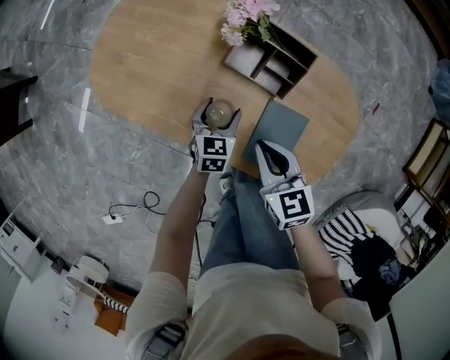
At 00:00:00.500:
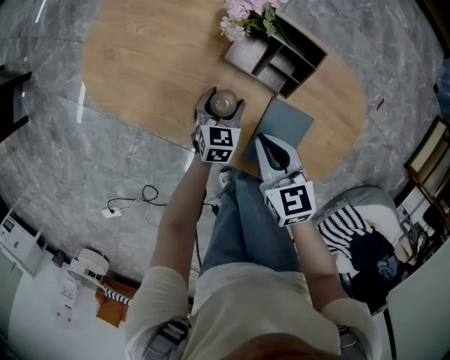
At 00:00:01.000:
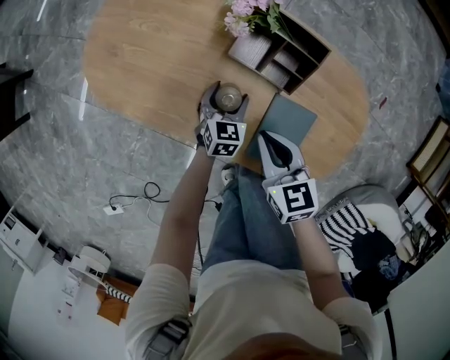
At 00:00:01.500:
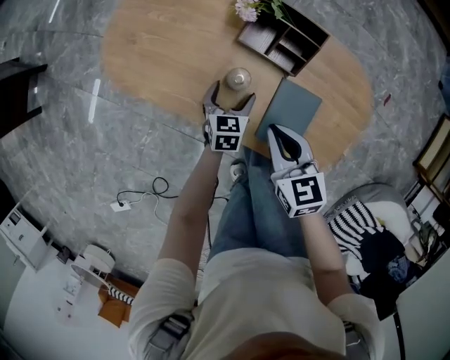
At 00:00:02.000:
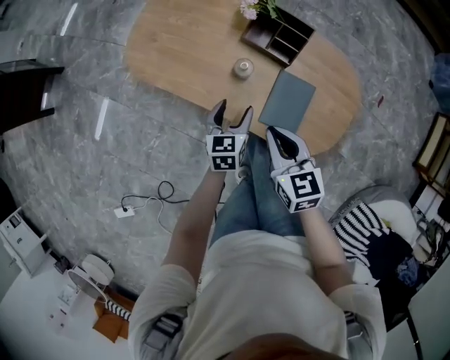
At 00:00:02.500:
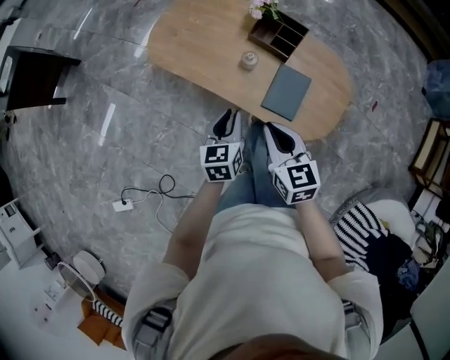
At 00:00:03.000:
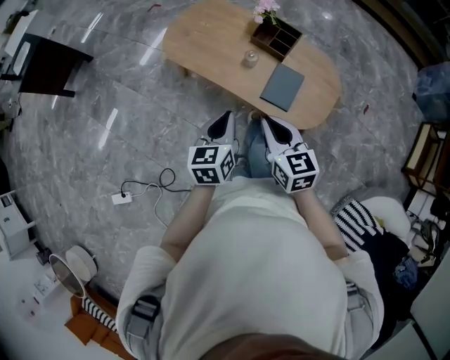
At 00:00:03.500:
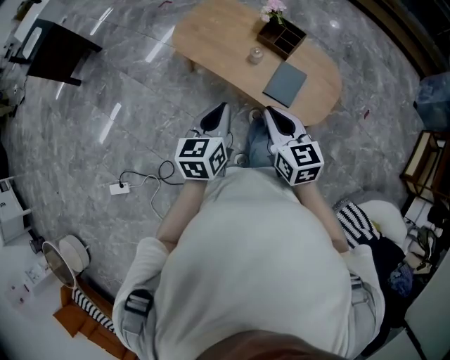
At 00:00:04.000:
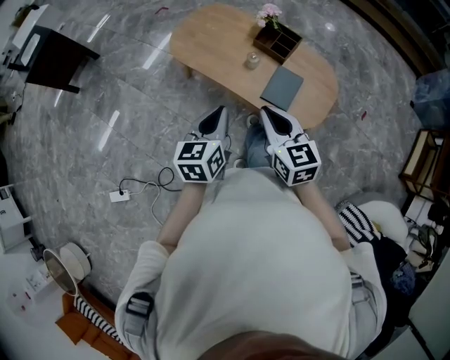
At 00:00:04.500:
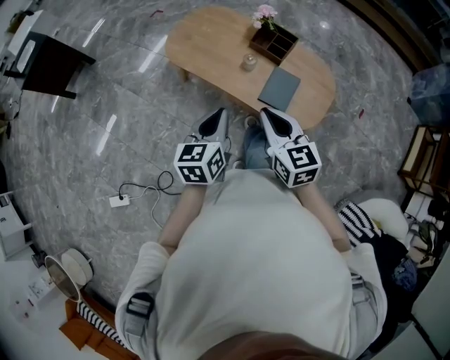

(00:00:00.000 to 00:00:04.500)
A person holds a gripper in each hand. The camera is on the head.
00:00:00.000 - 00:00:02.000: The two grippers go about 15 cm backward and upward.
00:00:02.000 - 00:00:04.500: Both grippers move upward and backward, approximately 30 cm. The left gripper closes its fingers.

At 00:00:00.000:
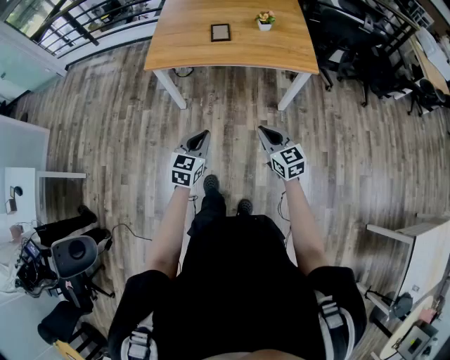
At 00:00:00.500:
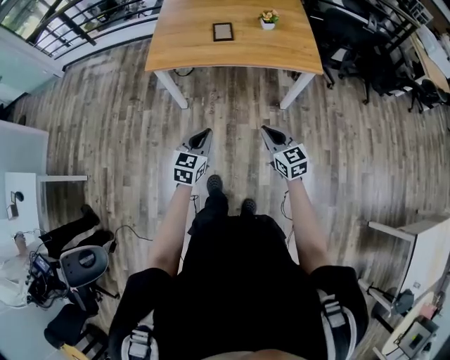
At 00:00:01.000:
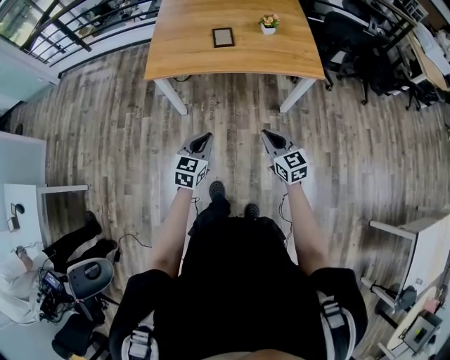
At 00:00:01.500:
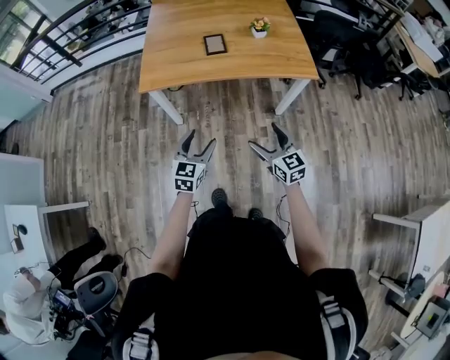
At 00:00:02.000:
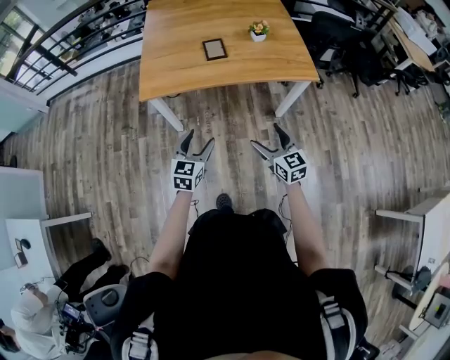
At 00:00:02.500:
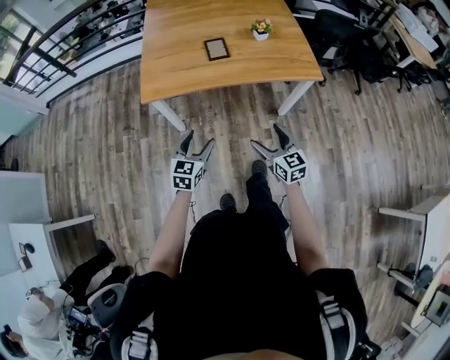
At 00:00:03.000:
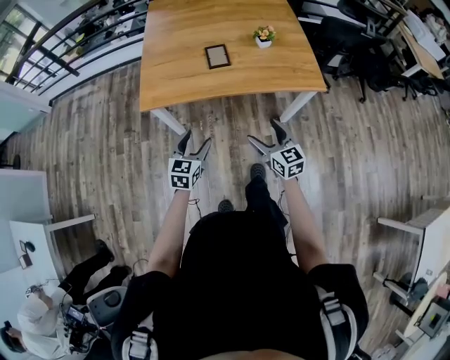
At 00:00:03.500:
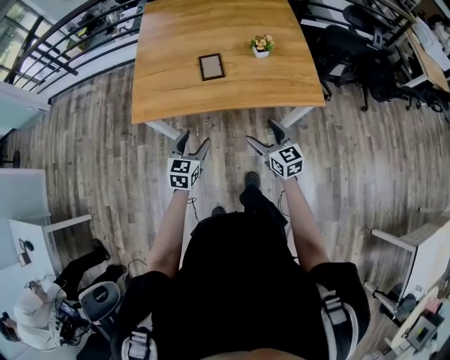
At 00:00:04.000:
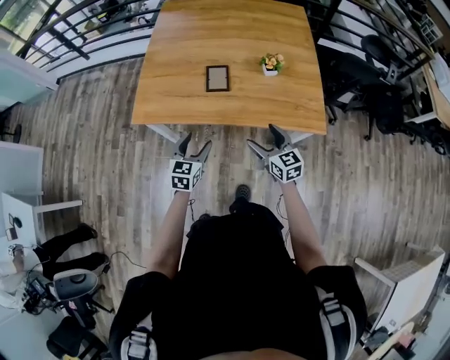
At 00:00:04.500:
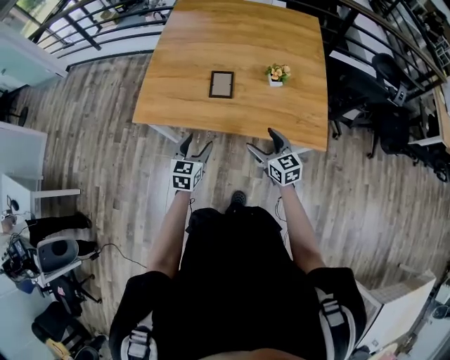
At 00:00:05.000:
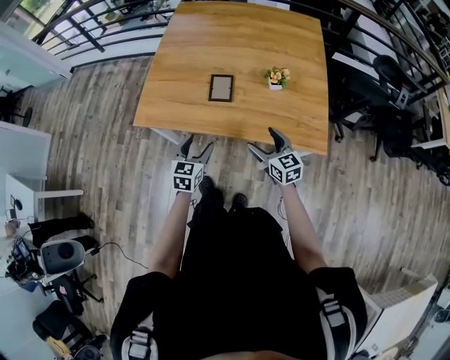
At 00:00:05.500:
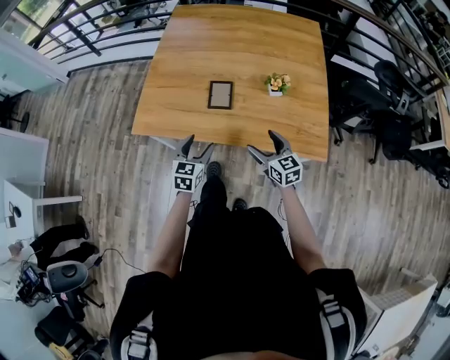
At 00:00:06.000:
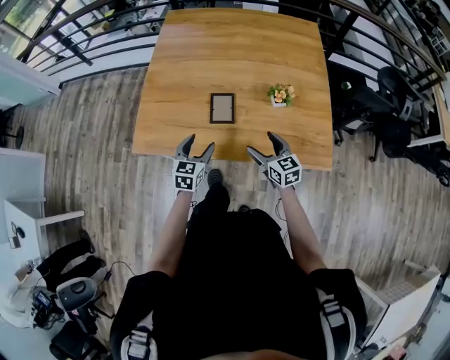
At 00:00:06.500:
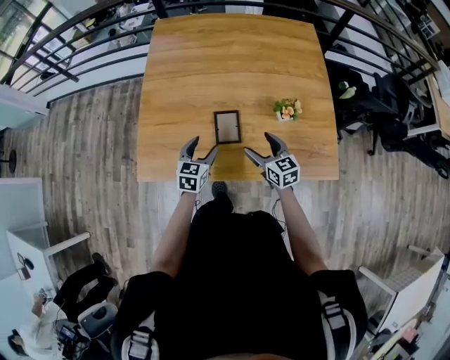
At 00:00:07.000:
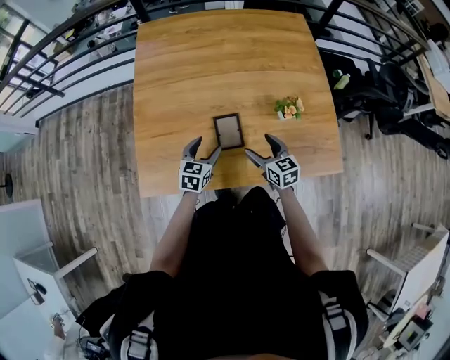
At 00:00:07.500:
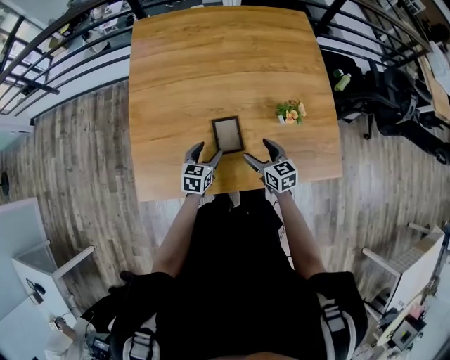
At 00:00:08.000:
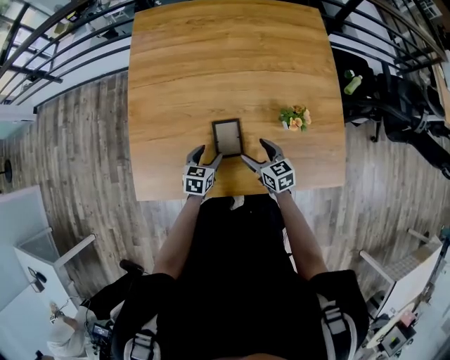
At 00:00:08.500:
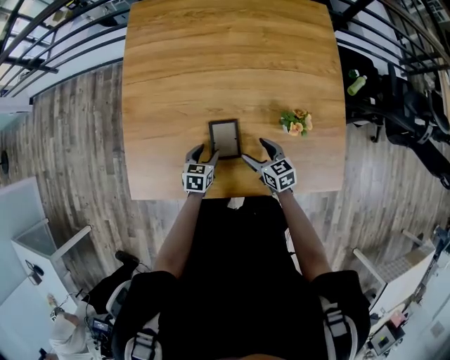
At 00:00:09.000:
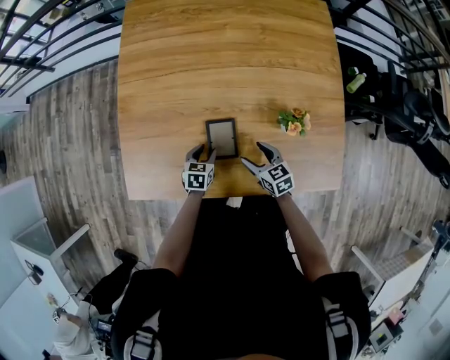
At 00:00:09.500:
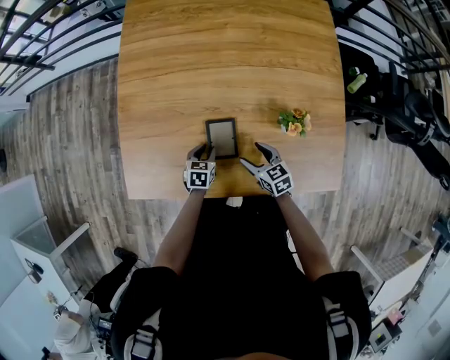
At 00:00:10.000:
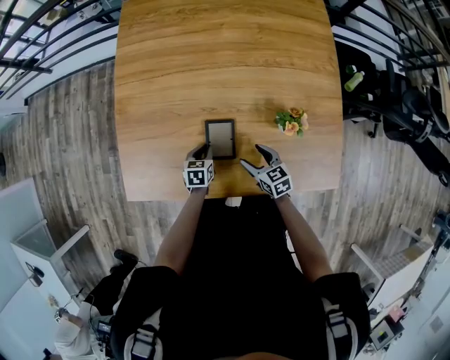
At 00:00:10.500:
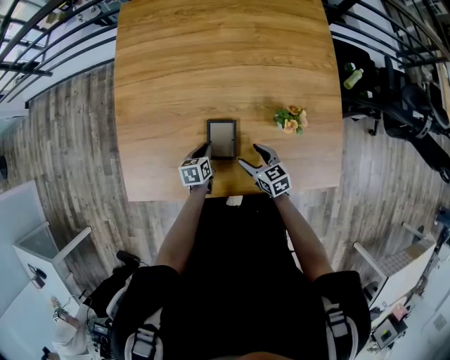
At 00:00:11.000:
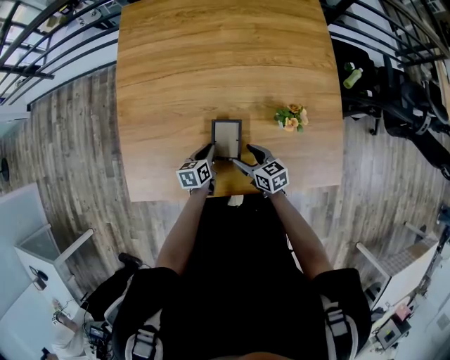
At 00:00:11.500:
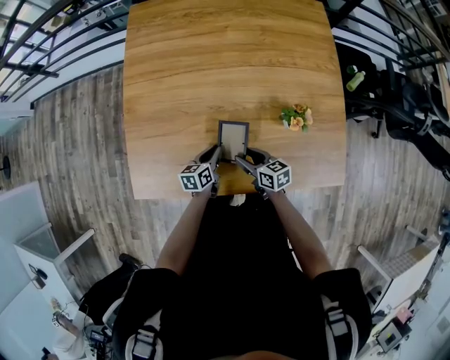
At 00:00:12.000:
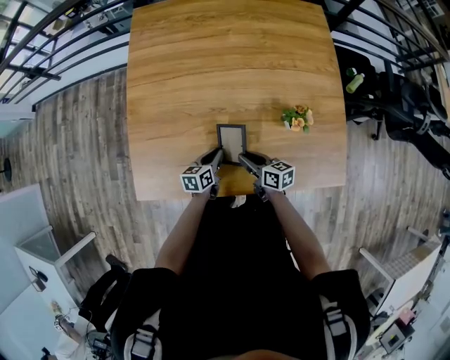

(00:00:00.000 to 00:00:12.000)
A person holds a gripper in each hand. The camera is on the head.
00:00:00.000 - 00:00:02.000: Both grippers move forward and to the left, about 15 cm. The right gripper opens its fingers. The left gripper opens.
00:00:02.000 - 00:00:04.000: The left gripper heads forward and to the right, covering roughly 20 cm, while the right gripper moves forward, roughly 25 cm.
00:00:04.000 - 00:00:06.000: Both grippers travel together forward, approximately 15 cm.
00:00:06.000 - 00:00:08.000: The right gripper travels forward, downward and to the left by roughly 15 cm, while the left gripper heads forward and downward, covering approximately 20 cm, and changes its angle by some 20 degrees.
00:00:08.000 - 00:00:10.000: The left gripper moves downward, roughly 5 cm, and closes.
00:00:10.000 - 00:00:12.000: The left gripper turns by roughly 20 degrees, while the right gripper heads to the left, covering approximately 5 cm, swivels approximately 30 degrees, and closes up.

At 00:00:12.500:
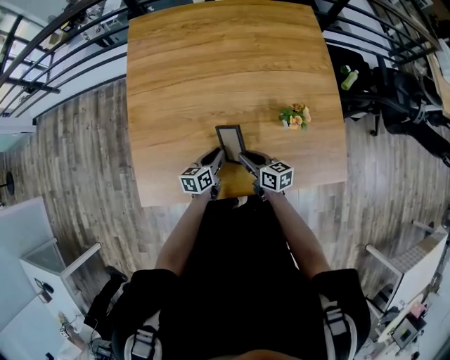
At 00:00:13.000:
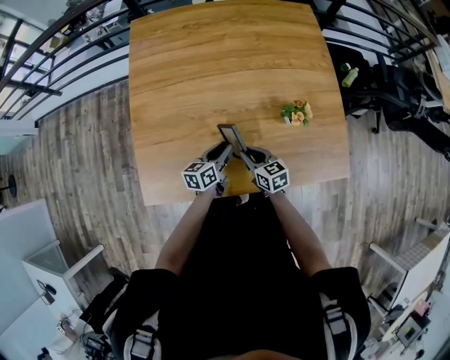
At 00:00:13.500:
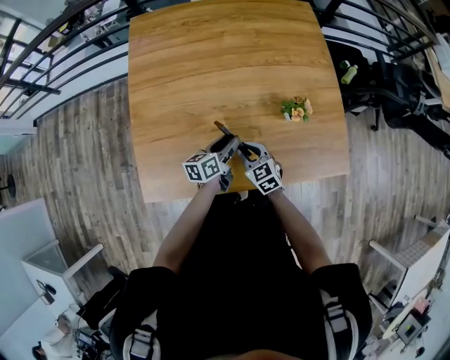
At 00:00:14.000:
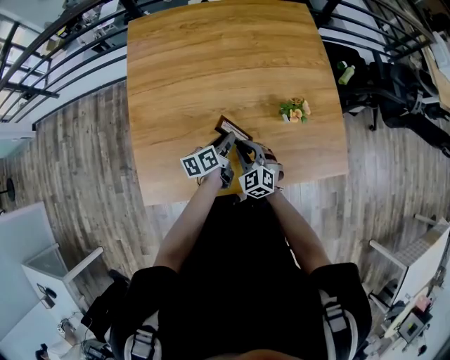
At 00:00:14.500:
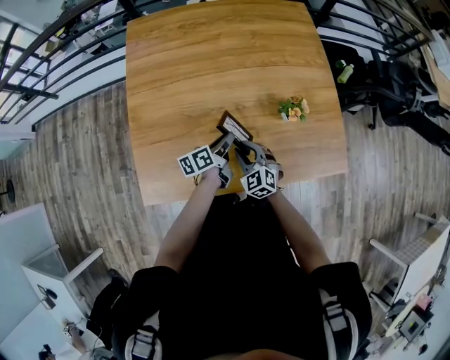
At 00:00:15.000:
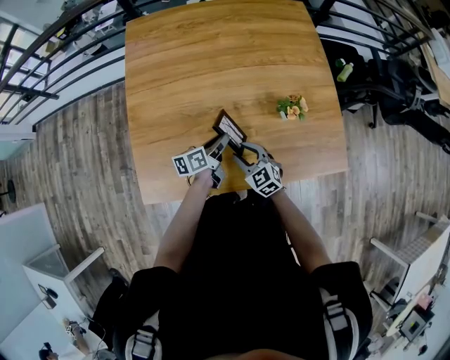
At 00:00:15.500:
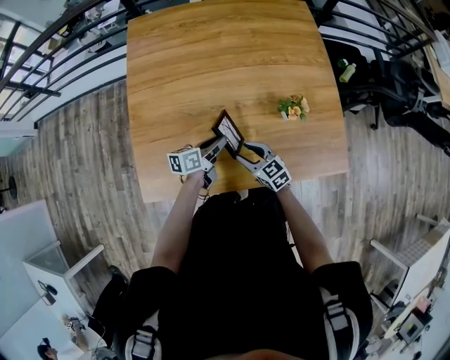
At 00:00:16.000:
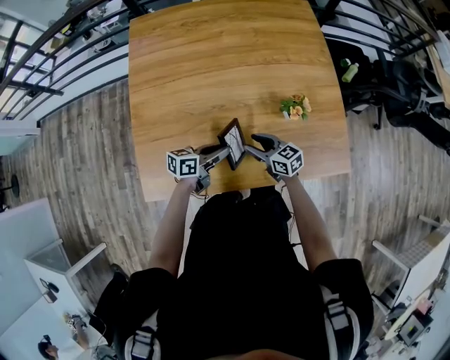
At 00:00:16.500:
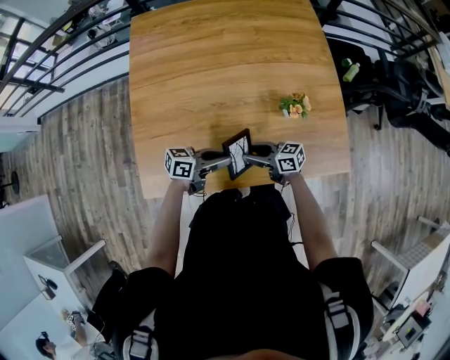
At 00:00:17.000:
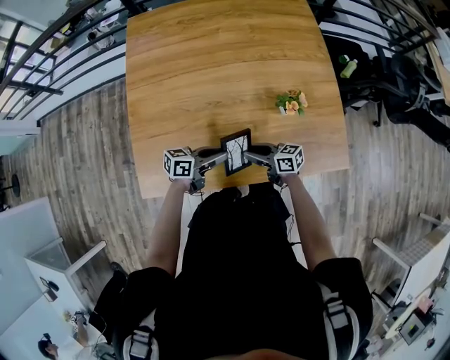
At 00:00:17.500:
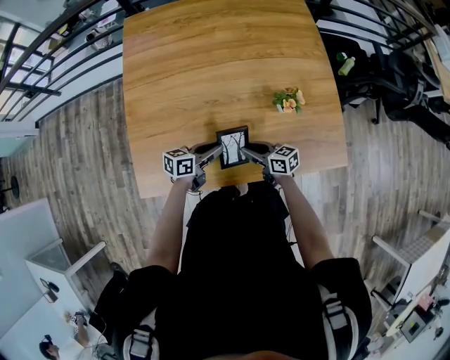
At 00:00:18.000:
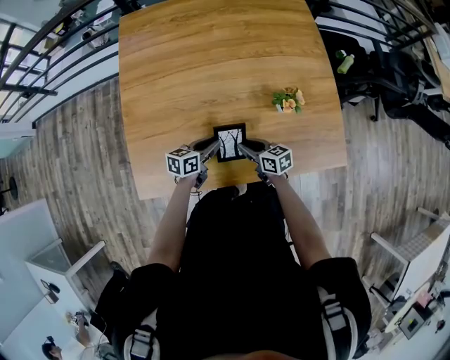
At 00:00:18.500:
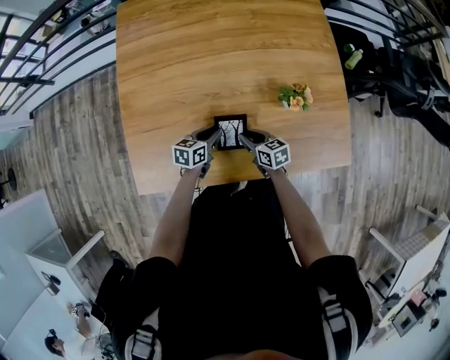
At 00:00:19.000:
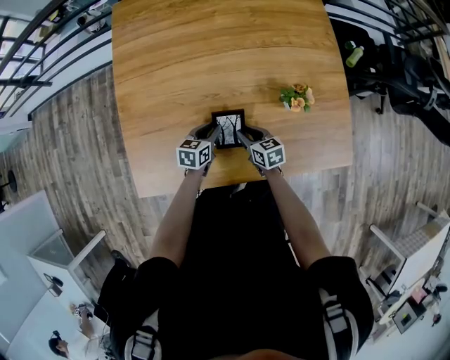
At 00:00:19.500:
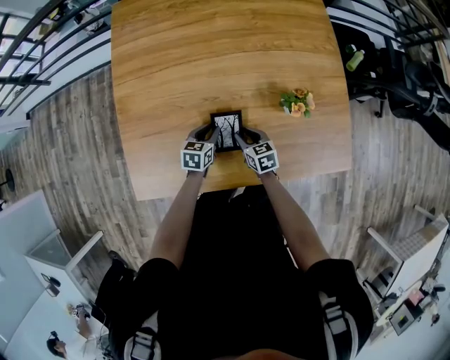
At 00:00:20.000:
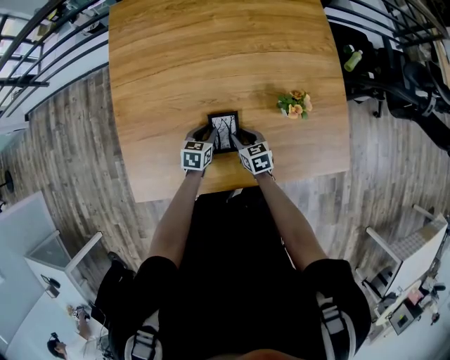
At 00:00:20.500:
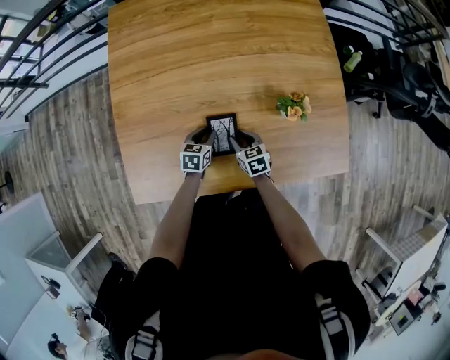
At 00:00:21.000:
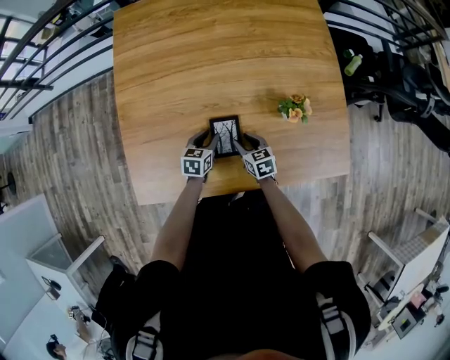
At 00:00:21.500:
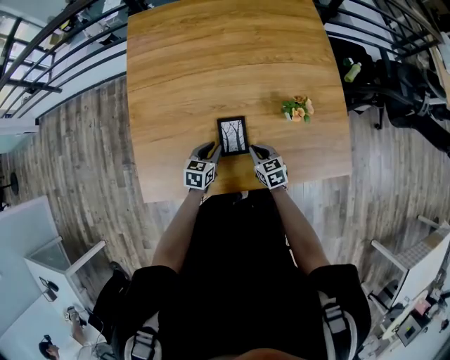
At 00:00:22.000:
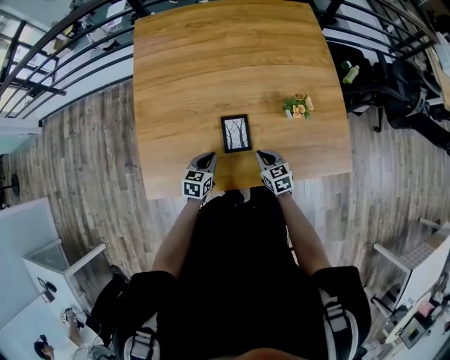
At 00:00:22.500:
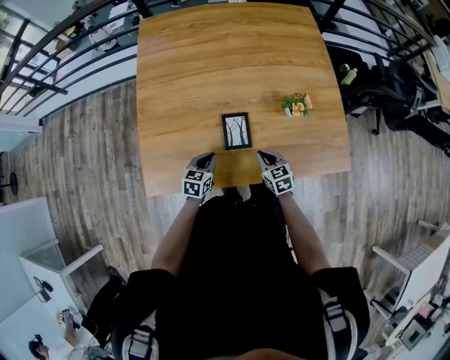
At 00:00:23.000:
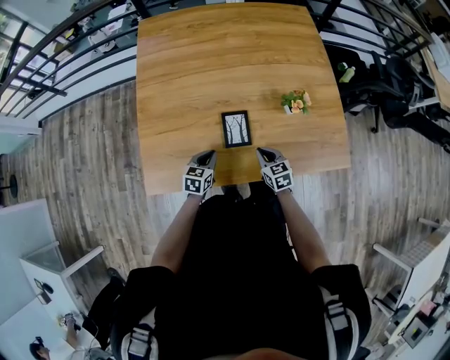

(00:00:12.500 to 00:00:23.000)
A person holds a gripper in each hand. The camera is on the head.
00:00:12.500 - 00:00:14.500: The right gripper rotates around the line of its fingers by approximately 60 degrees, counterclockwise from behind, while the left gripper shifts approximately 5 cm upward, and turns by about 20 degrees.
00:00:14.500 - 00:00:16.500: The left gripper shifts by about 10 cm, and turns by roughly 40 degrees. The right gripper moves some 5 cm, and turns by about 70 degrees.
00:00:16.500 - 00:00:19.000: The left gripper heads downward, covering some 10 cm, and swivels roughly 50 degrees. The right gripper goes some 10 cm downward, and swivels some 40 degrees.
00:00:19.000 - 00:00:21.000: There are only small adjustments of the grippers.
00:00:21.000 - 00:00:23.000: The right gripper goes about 10 cm backward and upward, and closes; the left gripper shifts some 10 cm backward, and closes up.
